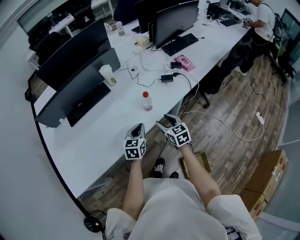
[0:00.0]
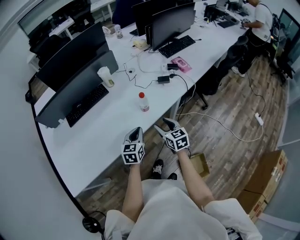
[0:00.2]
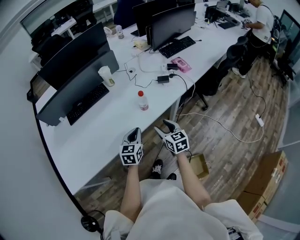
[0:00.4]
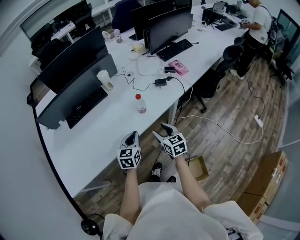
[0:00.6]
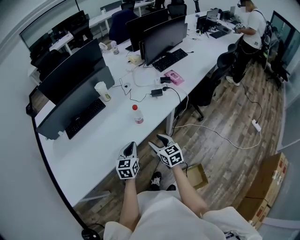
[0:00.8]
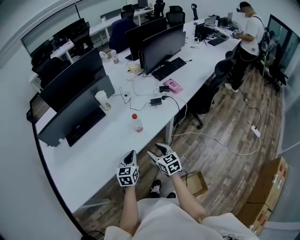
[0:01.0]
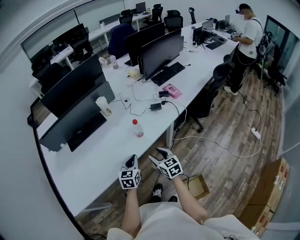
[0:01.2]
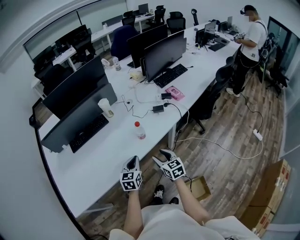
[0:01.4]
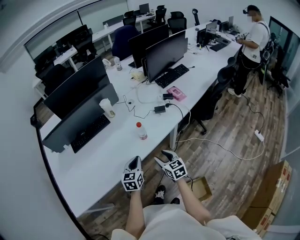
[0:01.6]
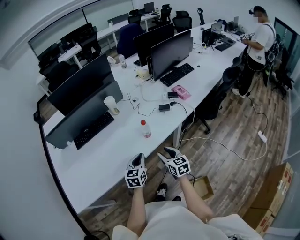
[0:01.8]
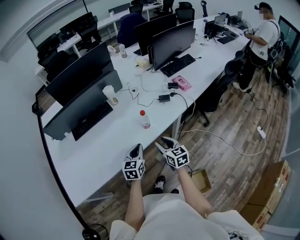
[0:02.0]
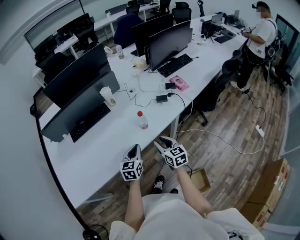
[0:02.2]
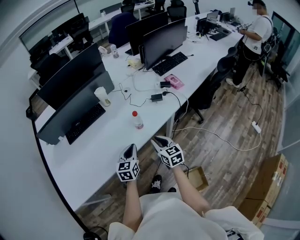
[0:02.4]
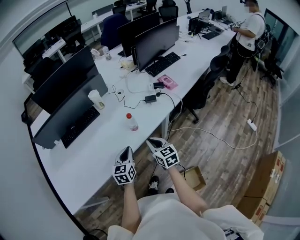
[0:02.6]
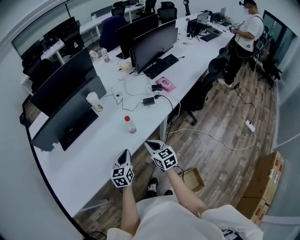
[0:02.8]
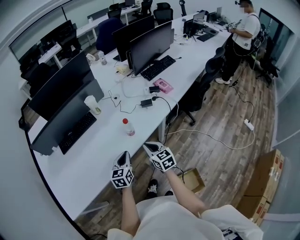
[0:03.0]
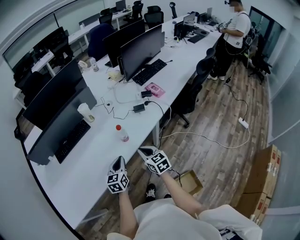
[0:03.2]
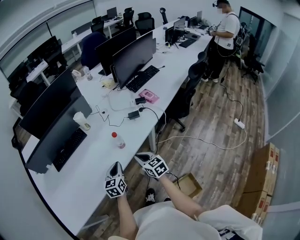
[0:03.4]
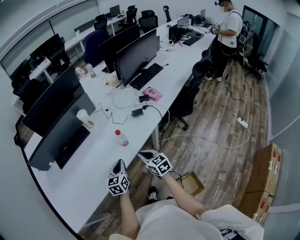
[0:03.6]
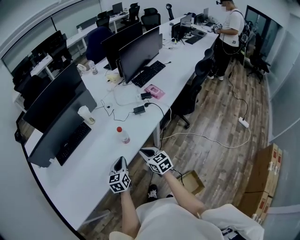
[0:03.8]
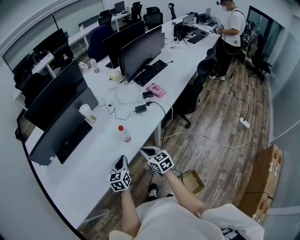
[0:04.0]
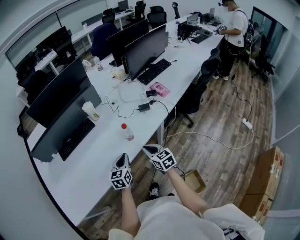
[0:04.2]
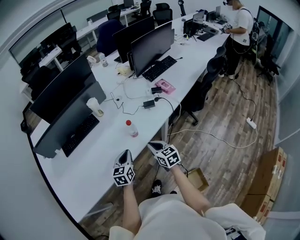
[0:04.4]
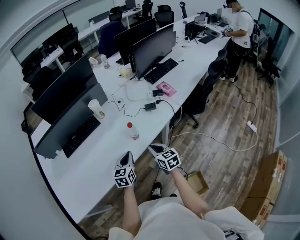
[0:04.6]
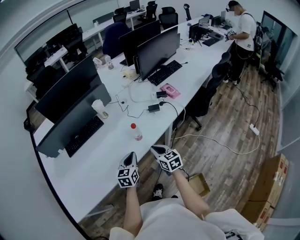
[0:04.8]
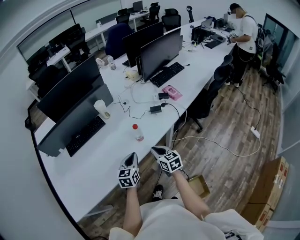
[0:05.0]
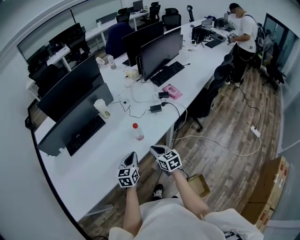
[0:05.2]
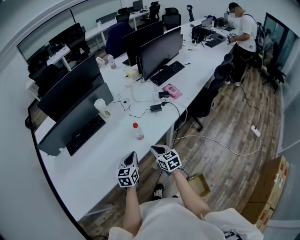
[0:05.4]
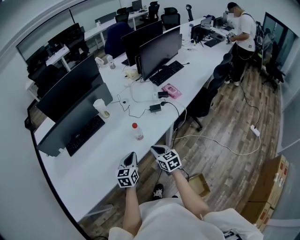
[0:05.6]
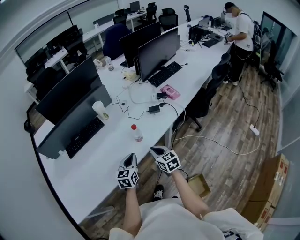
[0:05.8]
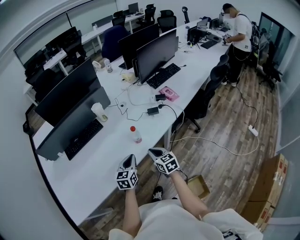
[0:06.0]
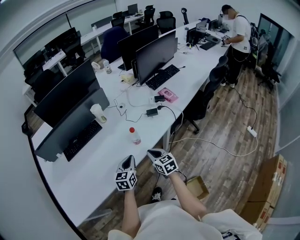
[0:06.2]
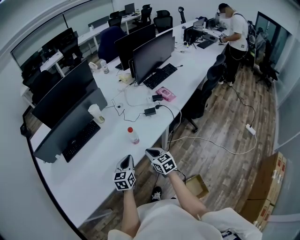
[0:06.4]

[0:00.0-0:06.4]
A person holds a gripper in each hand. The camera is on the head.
0:00.0 to 0:01.6: Both grippers move backward, some 5 cm.
0:01.6 to 0:03.2: The right gripper closes up.
0:03.2 to 0:06.4: The grippers stay close to where they were, moving slightly.

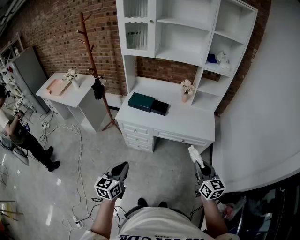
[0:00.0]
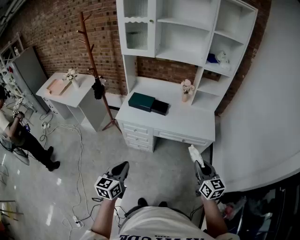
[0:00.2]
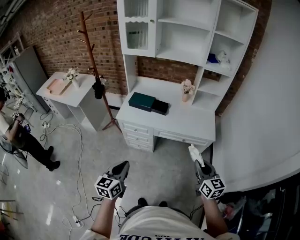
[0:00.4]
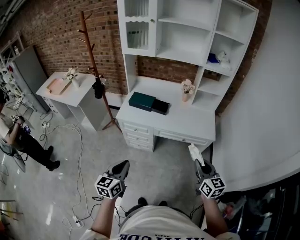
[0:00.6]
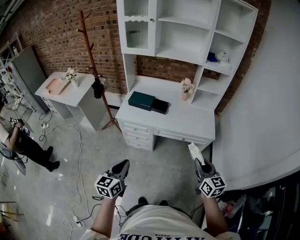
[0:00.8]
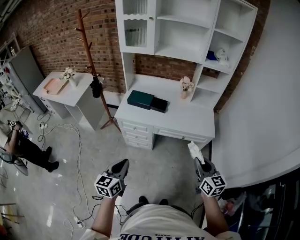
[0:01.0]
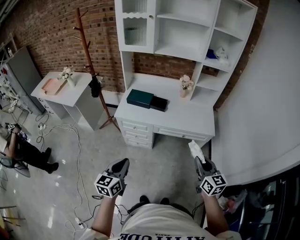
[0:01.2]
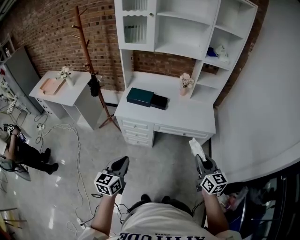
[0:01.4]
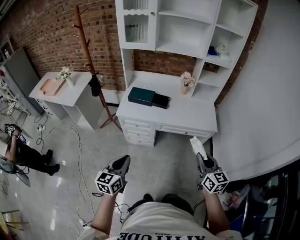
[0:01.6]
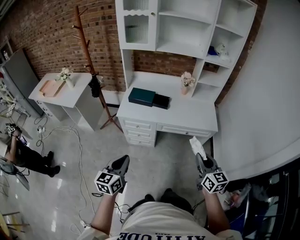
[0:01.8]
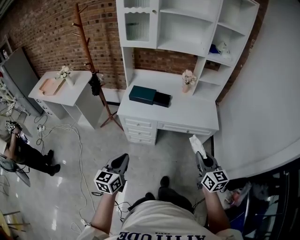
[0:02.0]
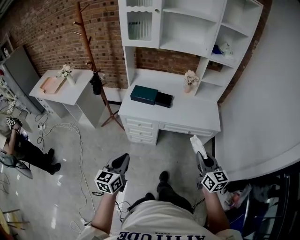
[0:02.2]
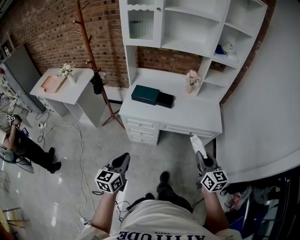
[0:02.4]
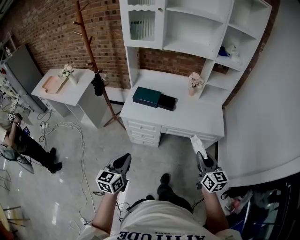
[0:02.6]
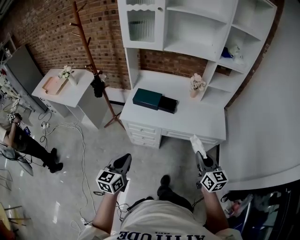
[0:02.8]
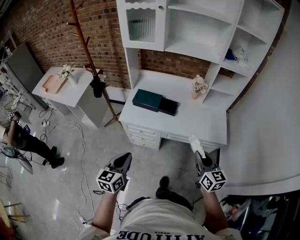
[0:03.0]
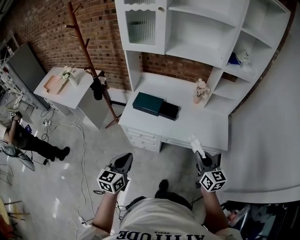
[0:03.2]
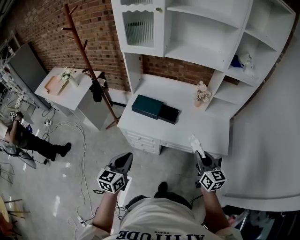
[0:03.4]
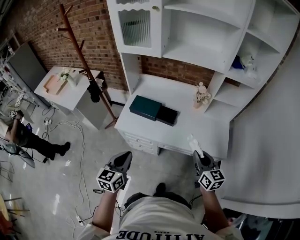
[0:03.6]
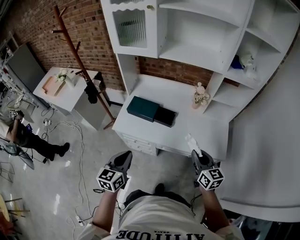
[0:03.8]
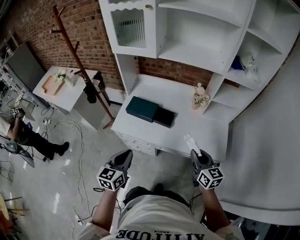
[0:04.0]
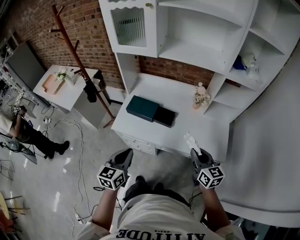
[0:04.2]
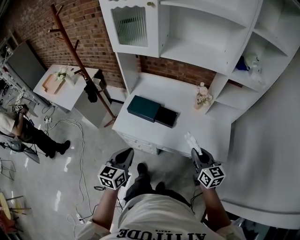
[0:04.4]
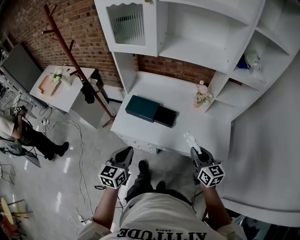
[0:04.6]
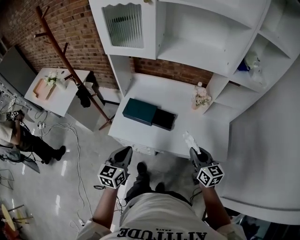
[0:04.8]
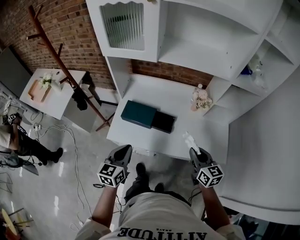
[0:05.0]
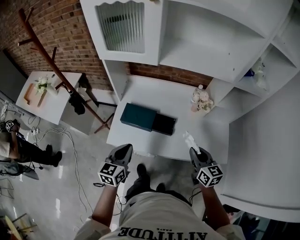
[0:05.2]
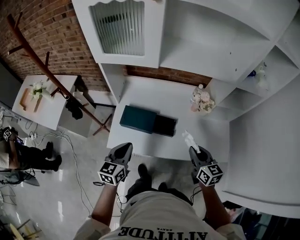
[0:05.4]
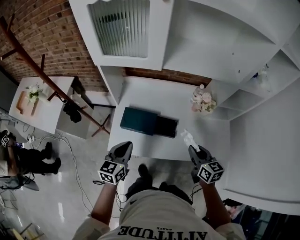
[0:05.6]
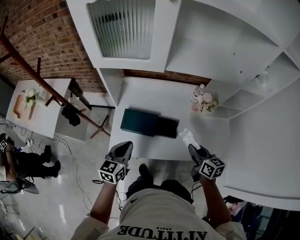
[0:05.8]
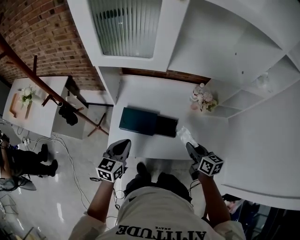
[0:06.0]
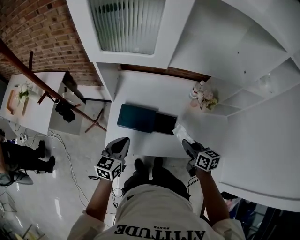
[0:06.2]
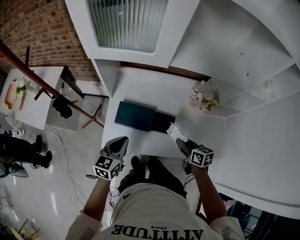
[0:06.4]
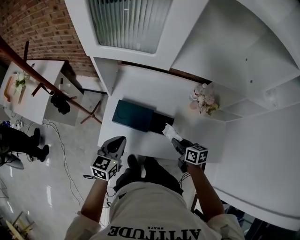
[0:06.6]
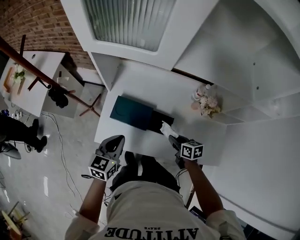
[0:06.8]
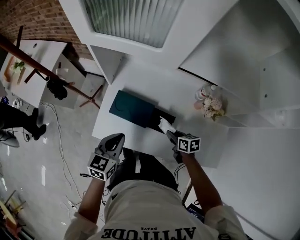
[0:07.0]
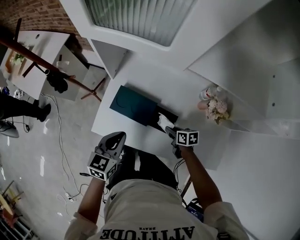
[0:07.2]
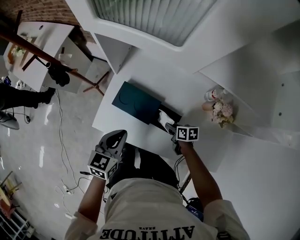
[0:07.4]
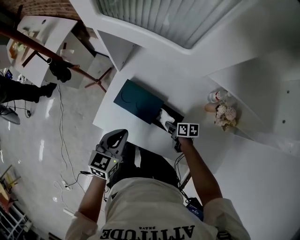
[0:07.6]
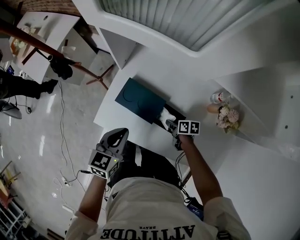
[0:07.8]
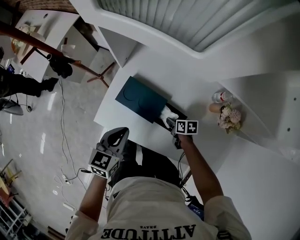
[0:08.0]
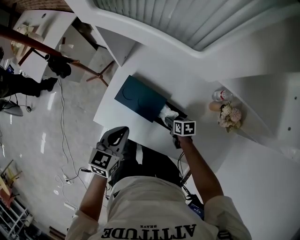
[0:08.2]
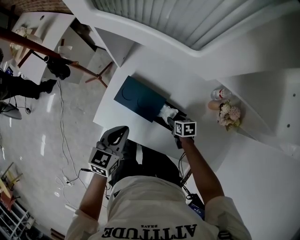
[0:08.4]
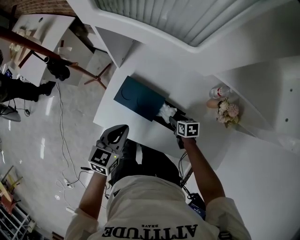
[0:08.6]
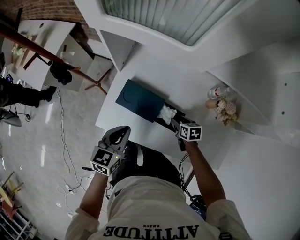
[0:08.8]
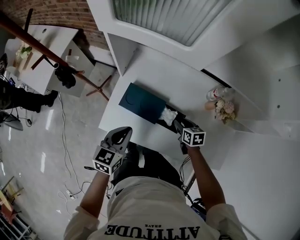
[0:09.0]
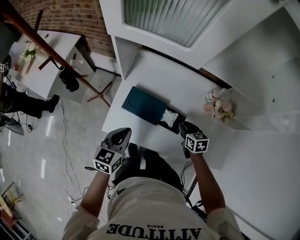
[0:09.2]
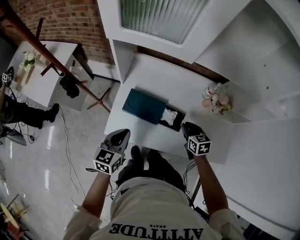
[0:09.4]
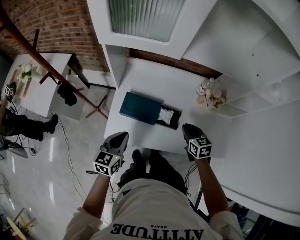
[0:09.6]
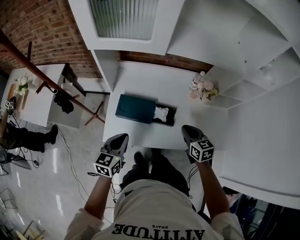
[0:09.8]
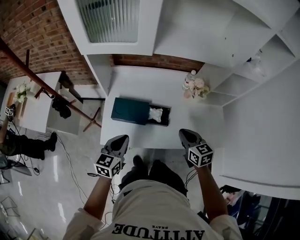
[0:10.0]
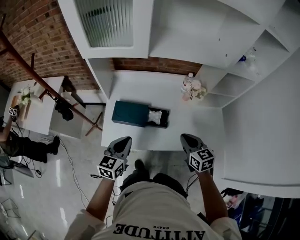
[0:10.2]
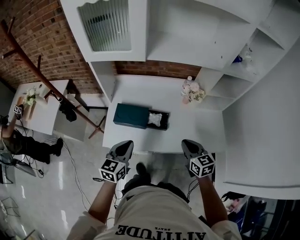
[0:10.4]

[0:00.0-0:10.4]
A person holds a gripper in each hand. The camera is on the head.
0:00.0 to 0:01.4: The grippers stay close to where they were, moving slightly.
0:01.4 to 0:03.0: Both grippers travel together forward, about 15 cm.
0:03.0 to 0:04.4: The left gripper moves forward and to the right, roughly 15 cm; the right gripper goes roughly 15 cm forward.
0:04.4 to 0:06.0: Both grippers travel together forward and to the left, roughly 25 cm. The right gripper changes its angle by about 20 degrees.
0:06.0 to 0:07.4: The left gripper shifts roughly 5 cm downward, while the right gripper goes approximately 25 cm downward, and turns by about 40 degrees.
0:07.4 to 0:09.0: The right gripper goes roughly 5 cm upward, swivels roughly 20 degrees, and opens its fingers.
0:09.0 to 0:10.4: The left gripper shifts about 15 cm backward, upward and to the right, while the right gripper travels backward and upward by approximately 30 cm, changes its angle by roughly 30 degrees, and closes its fingers.

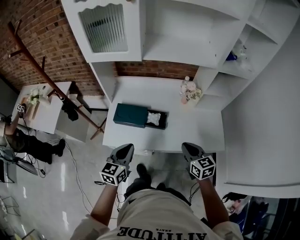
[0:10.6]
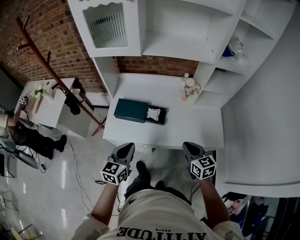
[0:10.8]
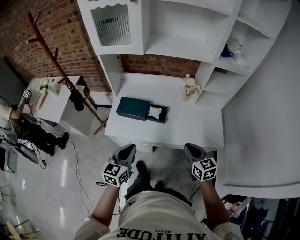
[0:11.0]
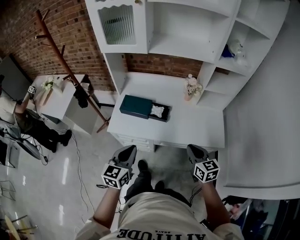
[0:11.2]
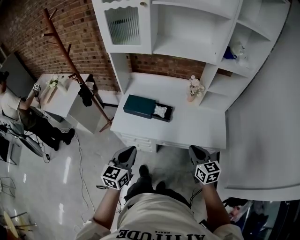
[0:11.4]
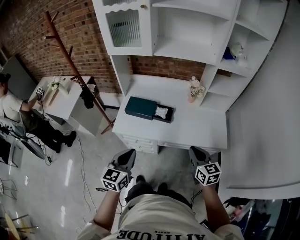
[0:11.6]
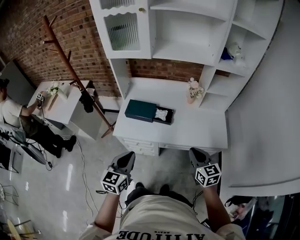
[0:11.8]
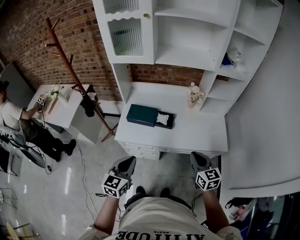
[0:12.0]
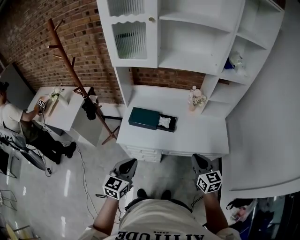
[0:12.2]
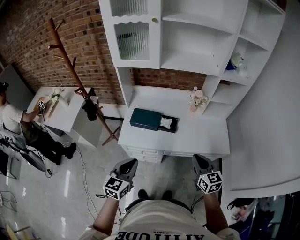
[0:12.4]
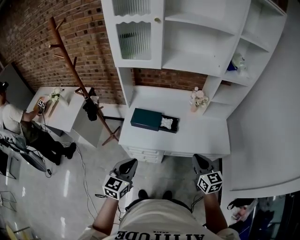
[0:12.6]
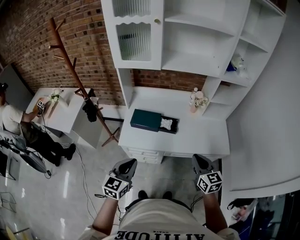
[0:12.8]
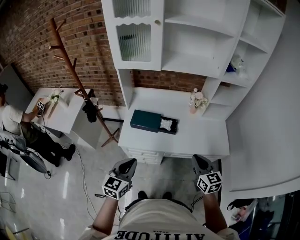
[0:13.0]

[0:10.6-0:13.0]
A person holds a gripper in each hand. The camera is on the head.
0:10.6 to 0:11.8: The grippers both shift backward by approximately 15 cm.
0:11.8 to 0:13.0: The right gripper moves roughly 5 cm; the left gripper shifts approximately 5 cm to the left.

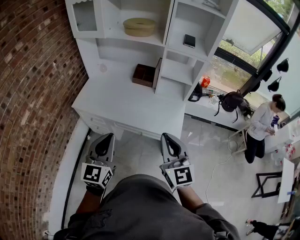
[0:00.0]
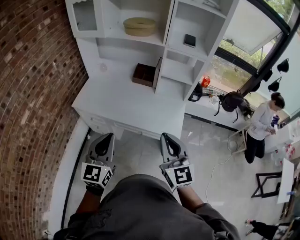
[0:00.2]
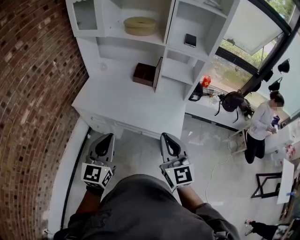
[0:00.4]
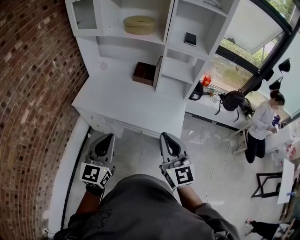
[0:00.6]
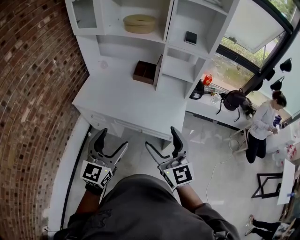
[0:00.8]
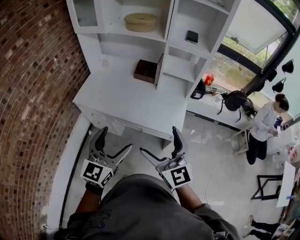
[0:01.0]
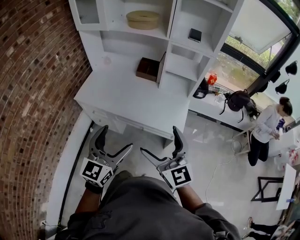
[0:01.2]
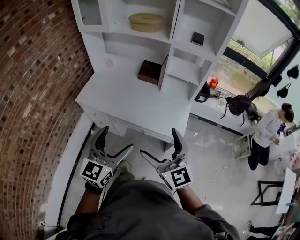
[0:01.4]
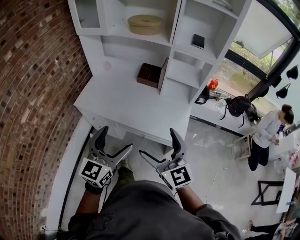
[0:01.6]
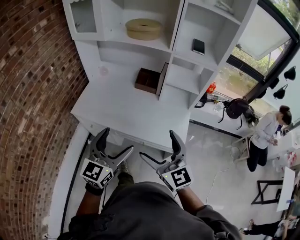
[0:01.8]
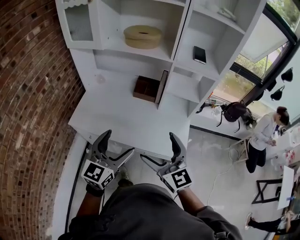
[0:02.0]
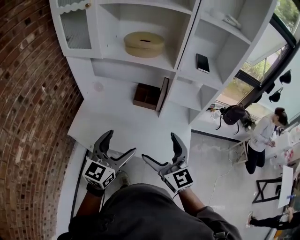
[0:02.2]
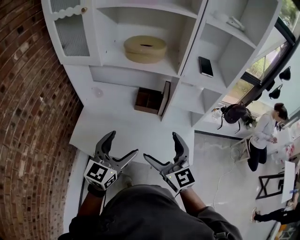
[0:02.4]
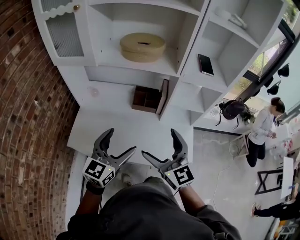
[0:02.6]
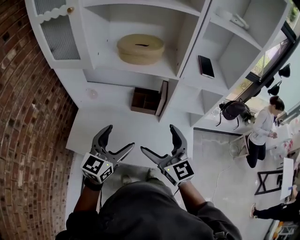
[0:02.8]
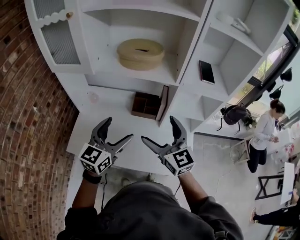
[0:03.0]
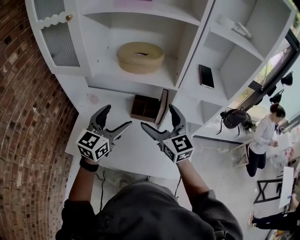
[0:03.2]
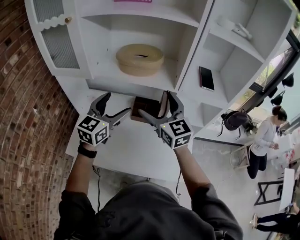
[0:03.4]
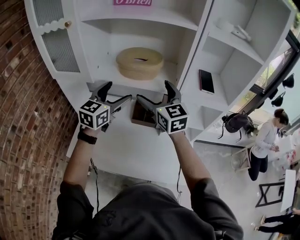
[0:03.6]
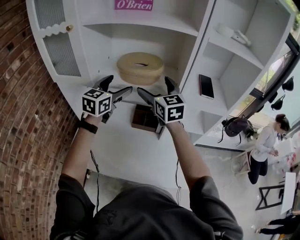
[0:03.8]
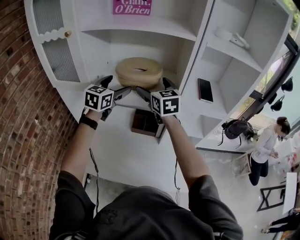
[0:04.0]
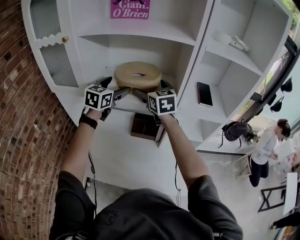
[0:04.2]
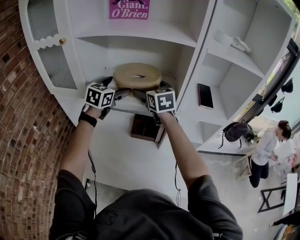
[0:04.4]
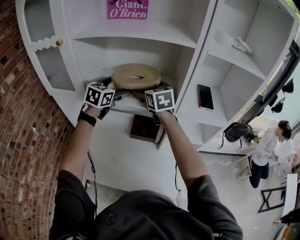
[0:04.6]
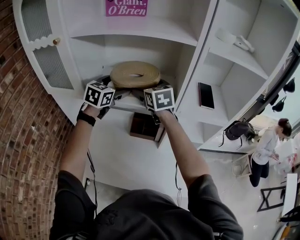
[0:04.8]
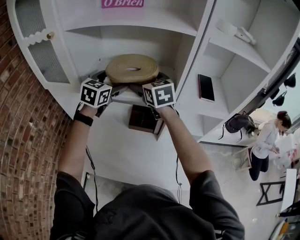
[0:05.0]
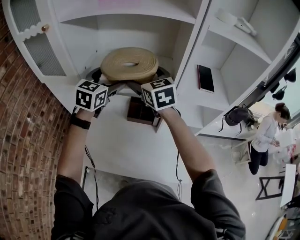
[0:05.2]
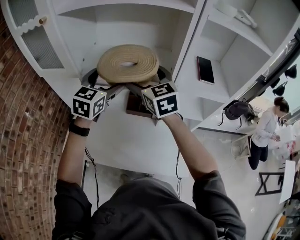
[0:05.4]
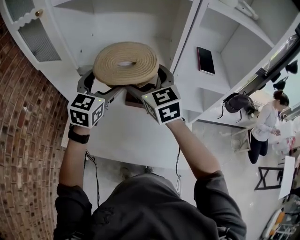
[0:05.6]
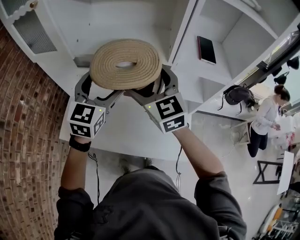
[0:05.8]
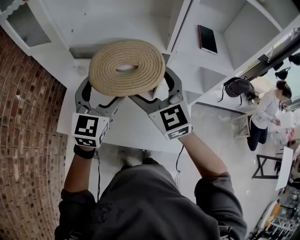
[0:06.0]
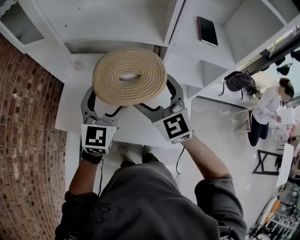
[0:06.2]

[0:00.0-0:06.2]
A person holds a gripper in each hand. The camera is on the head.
0:00.0 to 0:01.6: The left gripper changes place by some 5 cm, and opens its fingers. Meanwhile the right gripper ends up about 5 cm from where it was, and opens.
0:01.6 to 0:03.2: Both grippers move forward, about 40 cm.
0:03.2 to 0:04.6: Both grippers move forward, roughly 25 cm.
0:04.6 to 0:06.2: Both grippers move backward, about 25 cm. The right gripper swivels roughly 20 degrees.
